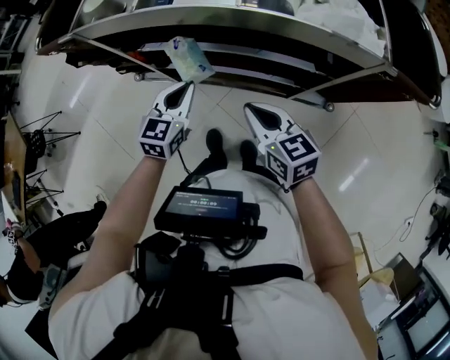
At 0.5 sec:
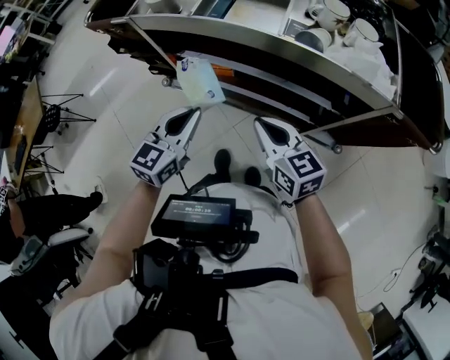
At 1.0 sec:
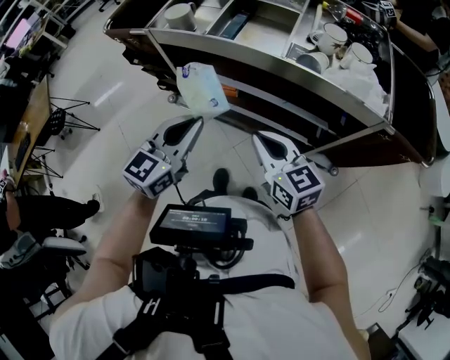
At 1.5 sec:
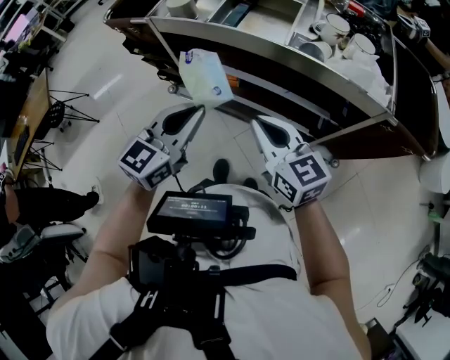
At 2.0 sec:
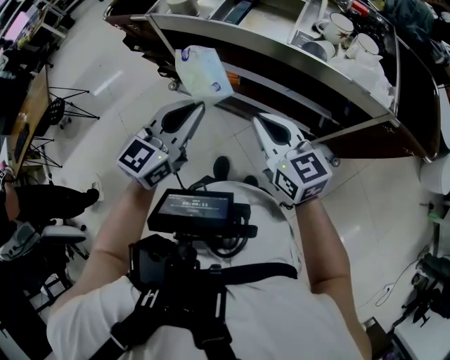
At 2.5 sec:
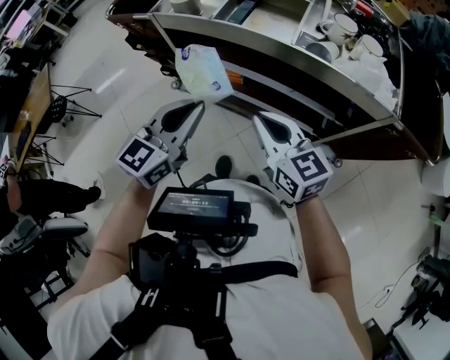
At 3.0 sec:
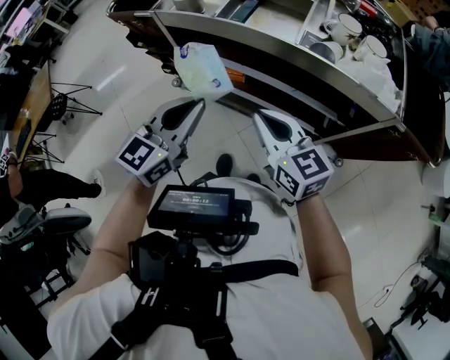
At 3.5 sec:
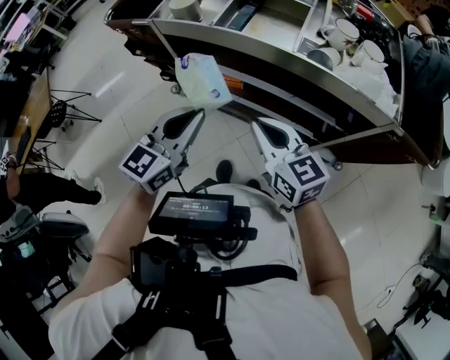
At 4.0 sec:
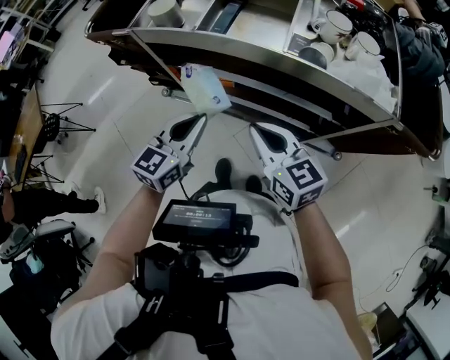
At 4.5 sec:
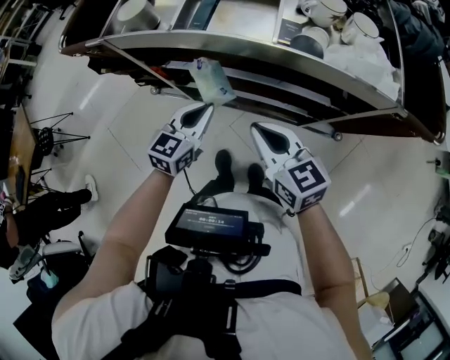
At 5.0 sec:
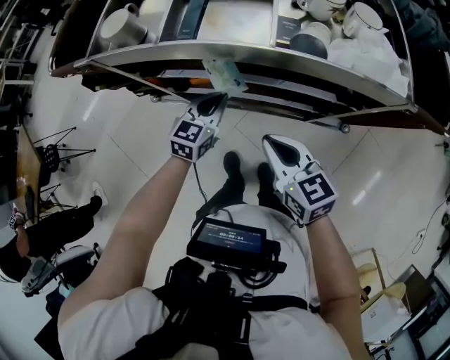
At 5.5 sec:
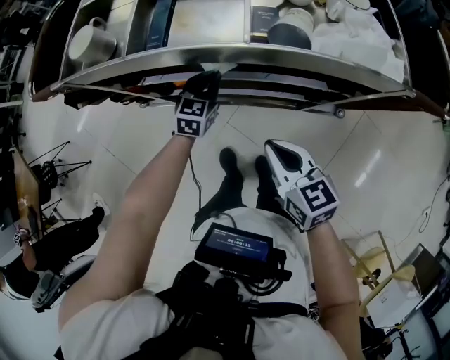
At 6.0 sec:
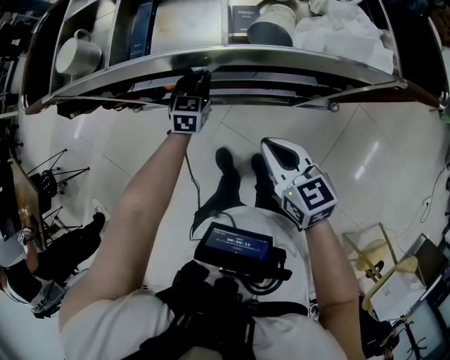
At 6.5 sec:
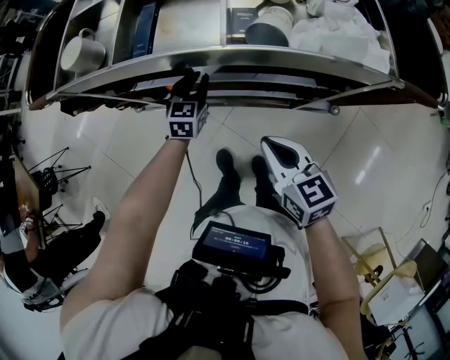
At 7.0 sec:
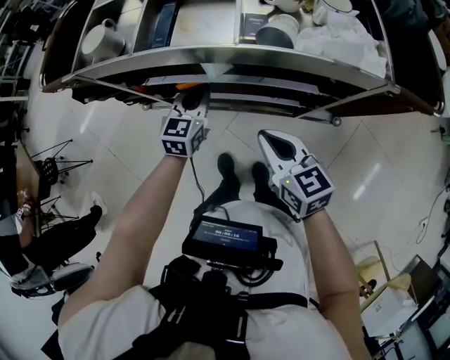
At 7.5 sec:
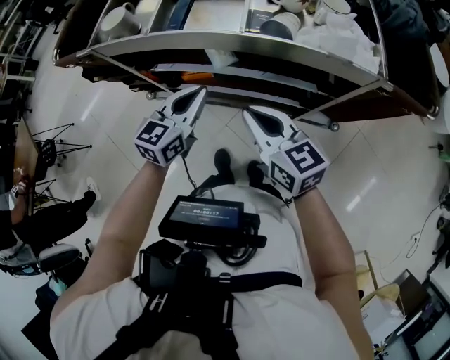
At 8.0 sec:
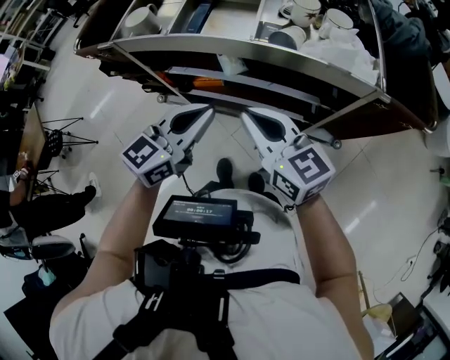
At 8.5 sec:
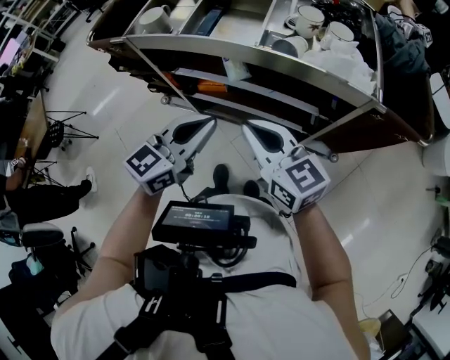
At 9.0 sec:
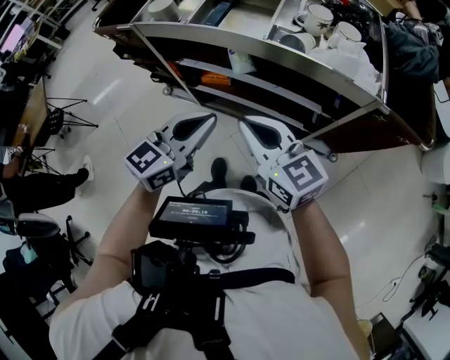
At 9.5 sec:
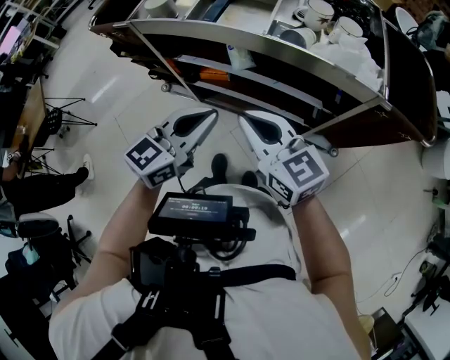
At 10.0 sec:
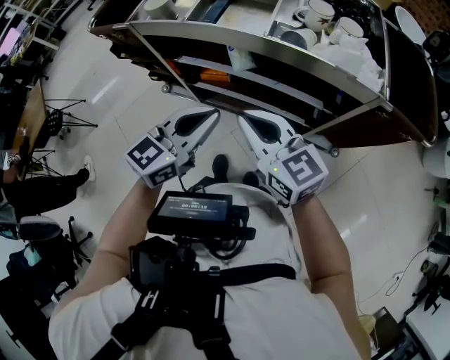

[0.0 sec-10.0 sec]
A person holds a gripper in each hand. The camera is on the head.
0.0 sec to 2.0 sec: The left gripper shifts some 20 cm upward and backward; the right gripper is displaced upward and to the left by approximately 10 cm, and changes its angle by some 20 degrees.
2.0 sec to 4.0 sec: The left gripper goes roughly 10 cm downward.
4.0 sec to 6.0 sec: The left gripper travels downward, forward and to the right by roughly 30 cm, and swivels some 20 degrees. Meanwhile the right gripper heads to the right and downward, covering about 10 cm, and rotates approximately 20 degrees.
6.0 sec to 8.0 sec: The left gripper goes approximately 35 cm upward and backward, and swivels some 30 degrees. The right gripper heads upward, covering roughly 15 cm, and turns by some 30 degrees.
8.0 sec to 10.0 sec: The grippers stay close to where they were, moving slightly.

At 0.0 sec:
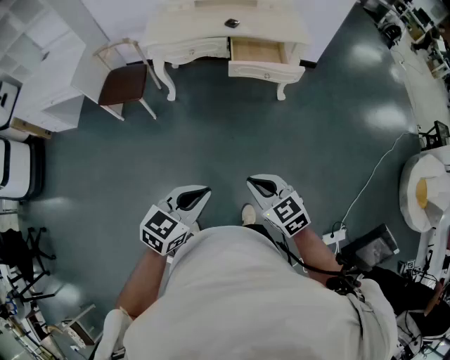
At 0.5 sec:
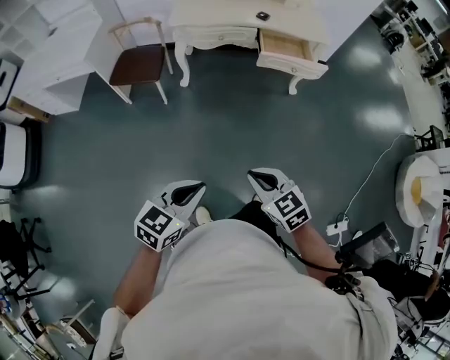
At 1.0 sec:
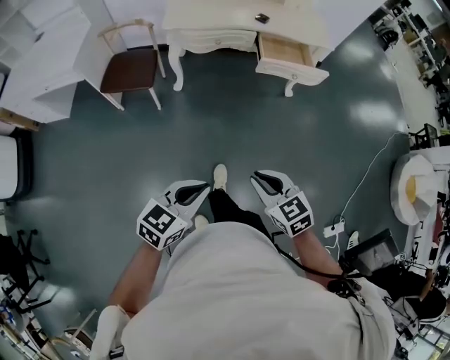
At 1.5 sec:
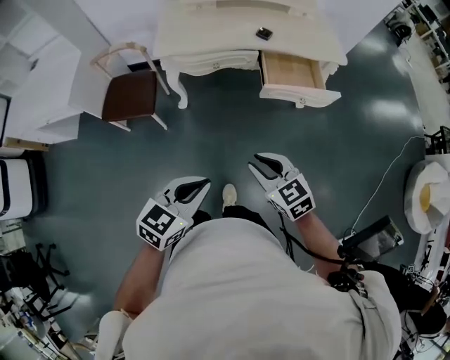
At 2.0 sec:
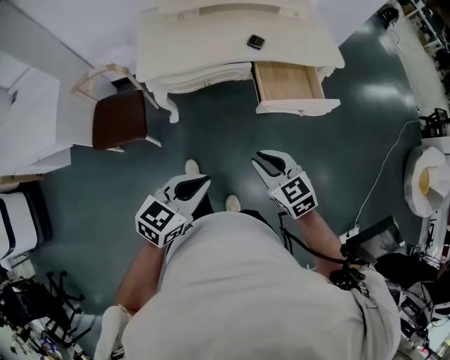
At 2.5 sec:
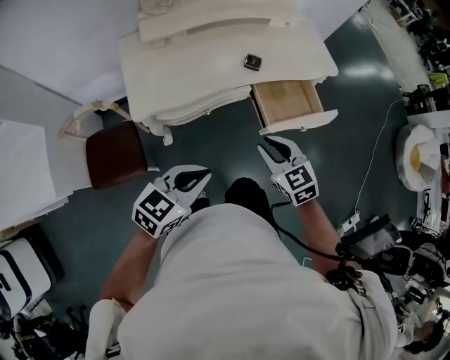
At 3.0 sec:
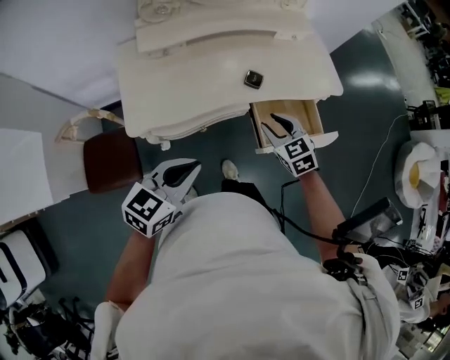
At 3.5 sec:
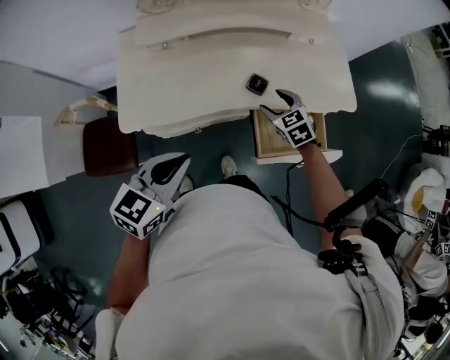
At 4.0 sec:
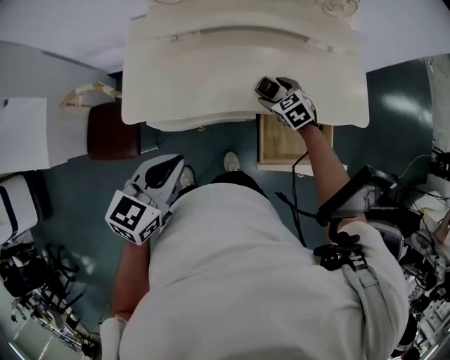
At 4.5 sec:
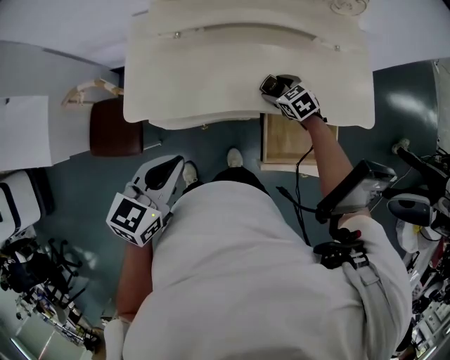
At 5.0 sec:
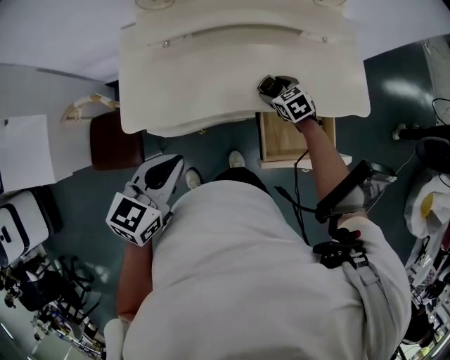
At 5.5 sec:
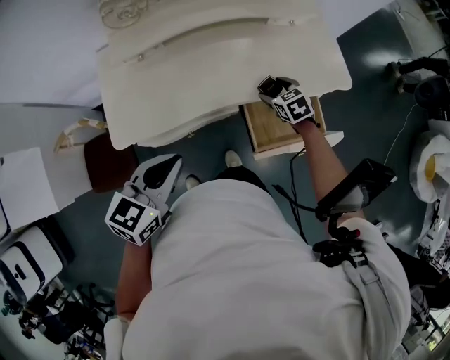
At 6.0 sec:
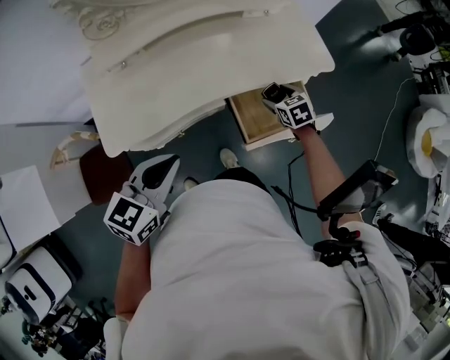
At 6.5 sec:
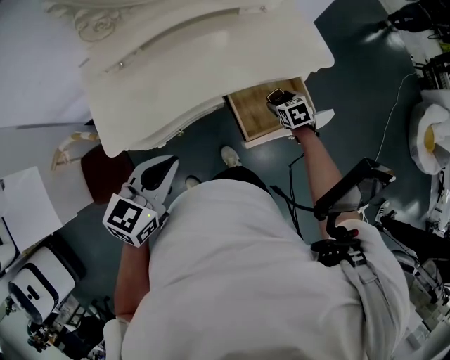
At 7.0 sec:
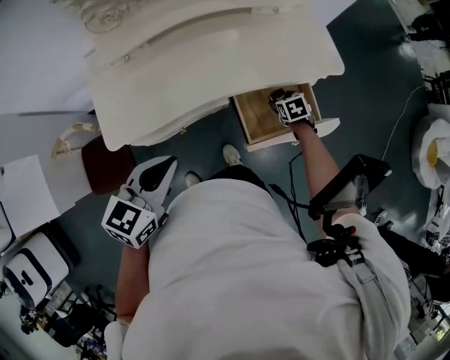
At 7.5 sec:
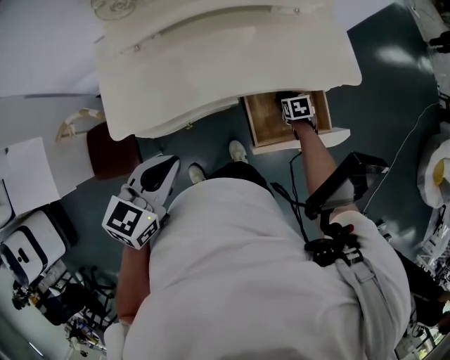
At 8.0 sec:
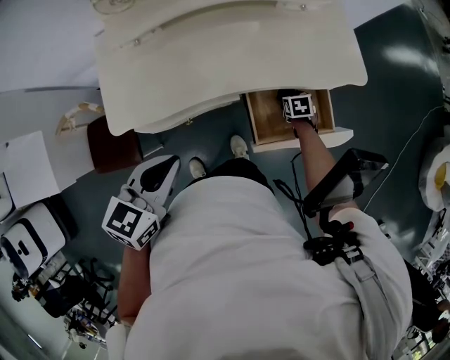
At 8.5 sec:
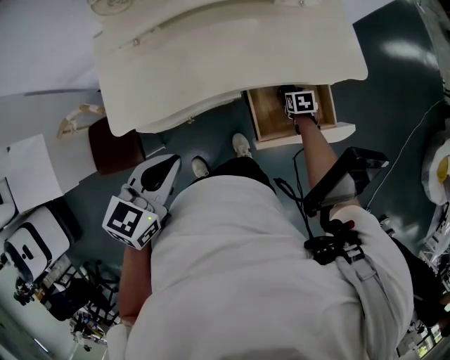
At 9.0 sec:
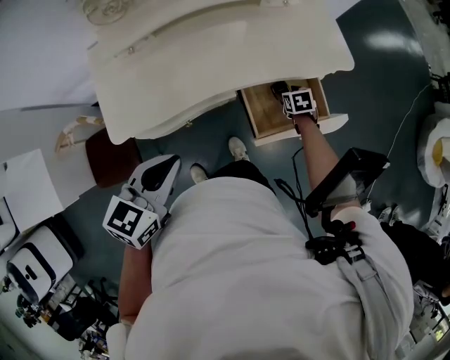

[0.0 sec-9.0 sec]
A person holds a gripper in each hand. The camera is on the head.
0.0 sec to 2.0 sec: The two grippers travel together, forward and to the left, some 50 cm.
2.0 sec to 4.5 sec: The right gripper ends up some 60 cm from where it was, swivels approximately 20 degrees, and opens up. Meanwhile the left gripper changes place by some 40 cm, and turns by roughly 20 degrees.
4.5 sec to 7.0 sec: The right gripper shifts by about 25 cm, and turns by about 40 degrees. Meanwhile the left gripper ends up approximately 5 cm from where it was.

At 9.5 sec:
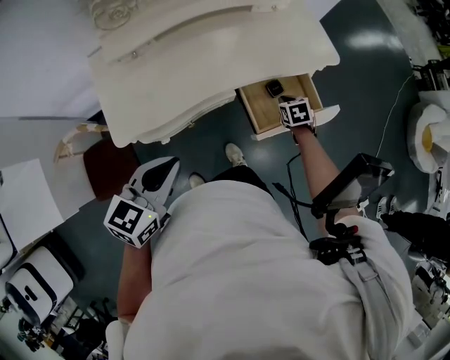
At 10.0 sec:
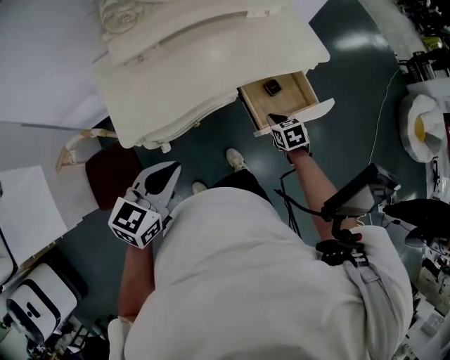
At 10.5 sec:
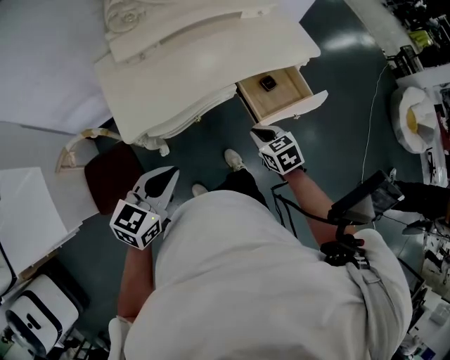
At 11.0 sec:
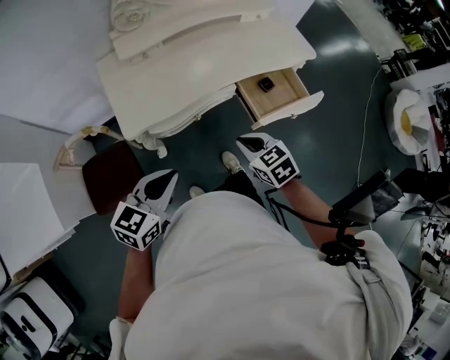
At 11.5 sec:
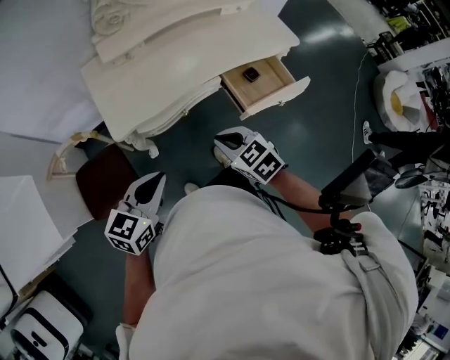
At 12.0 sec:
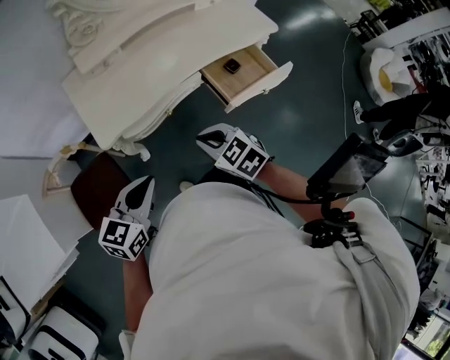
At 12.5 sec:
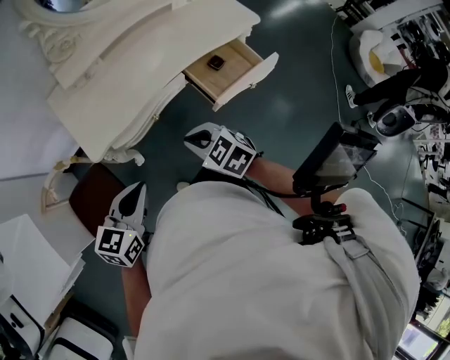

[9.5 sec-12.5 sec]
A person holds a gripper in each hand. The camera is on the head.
9.5 sec to 11.0 sec: The right gripper goes roughly 40 cm backward, to the left and upward, and turns by roughly 30 degrees; the left gripper goes about 15 cm backward and to the left.
11.0 sec to 12.5 sec: The right gripper moves about 5 cm.

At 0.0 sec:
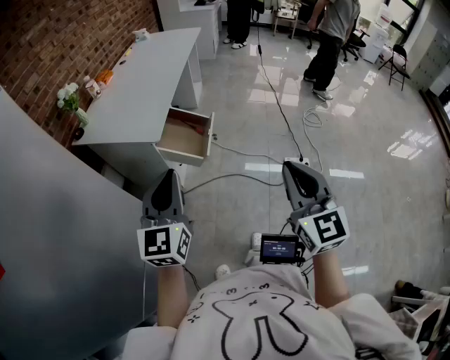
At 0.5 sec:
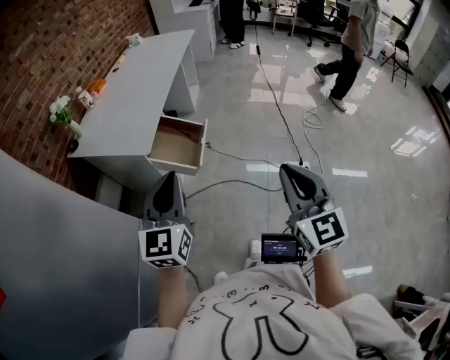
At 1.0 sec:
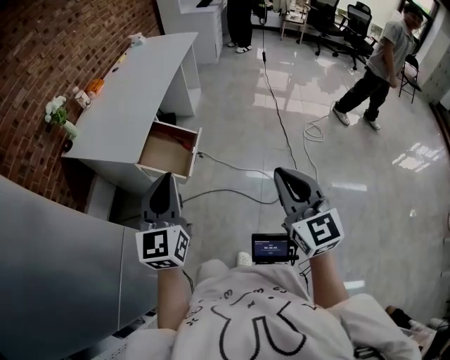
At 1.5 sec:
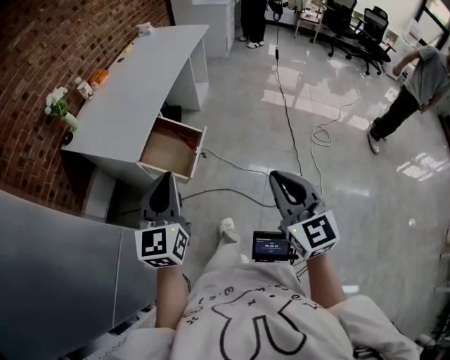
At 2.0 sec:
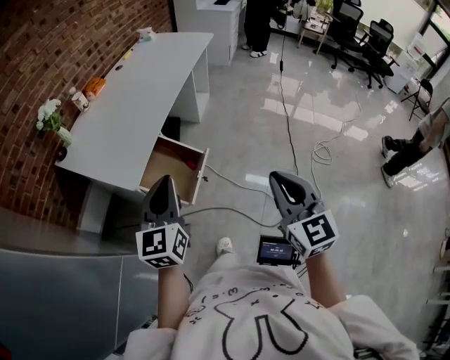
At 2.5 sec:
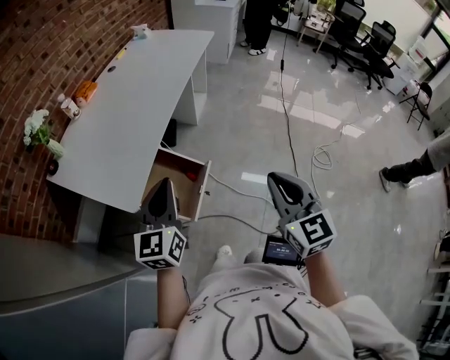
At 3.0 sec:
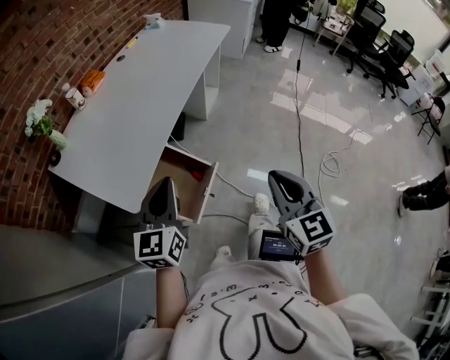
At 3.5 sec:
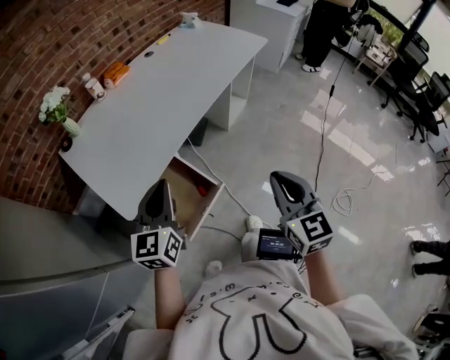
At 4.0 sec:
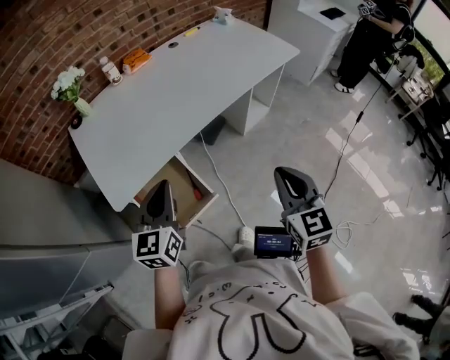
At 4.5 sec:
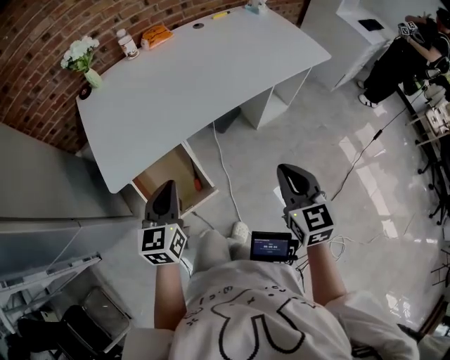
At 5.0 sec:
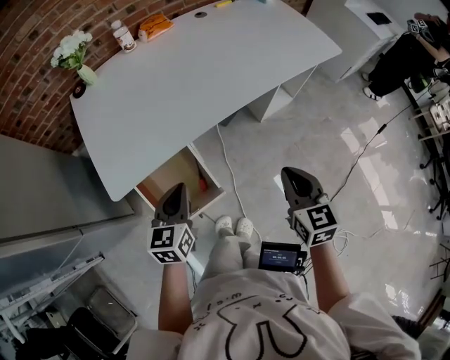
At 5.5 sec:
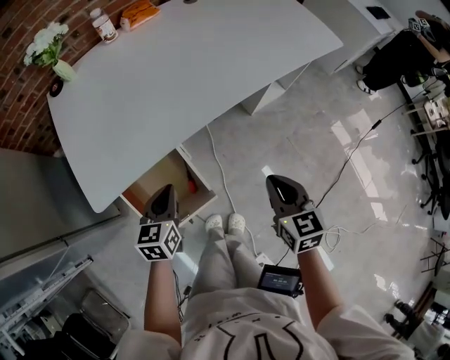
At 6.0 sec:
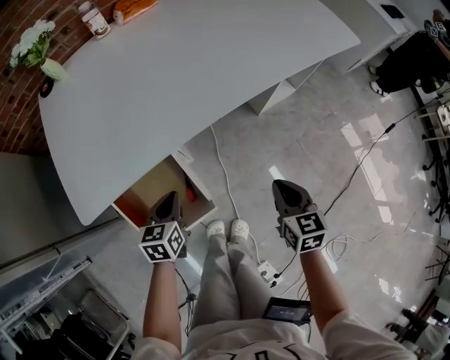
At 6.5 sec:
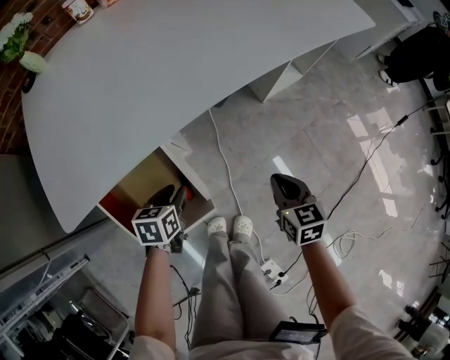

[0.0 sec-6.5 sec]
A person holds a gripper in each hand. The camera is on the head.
0.0 sec to 2.0 sec: The right gripper moves forward, roughly 30 cm, while the left gripper goes some 30 cm forward and to the right.
2.0 sec to 4.5 sec: The right gripper ends up approximately 50 cm from where it was, and changes its angle by about 40 degrees. The left gripper shifts by approximately 30 cm, and rotates roughly 40 degrees.
4.5 sec to 6.5 sec: Both grippers travel together downward, some 35 cm. The left gripper tips its fingers downward by about 30 degrees, and opens. Meanwhile the right gripper turns by some 20 degrees.
